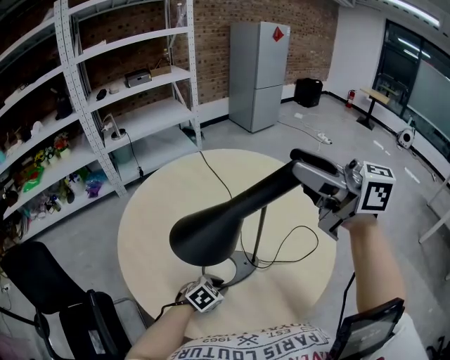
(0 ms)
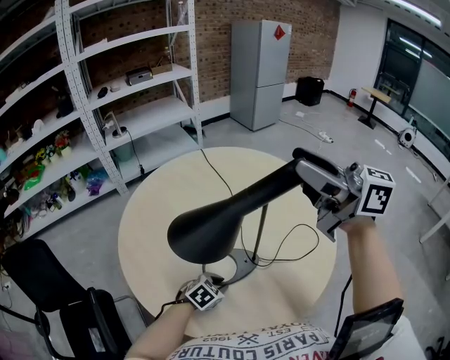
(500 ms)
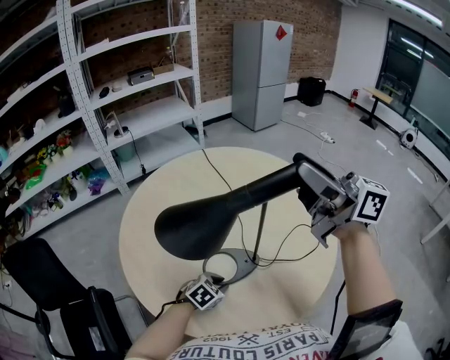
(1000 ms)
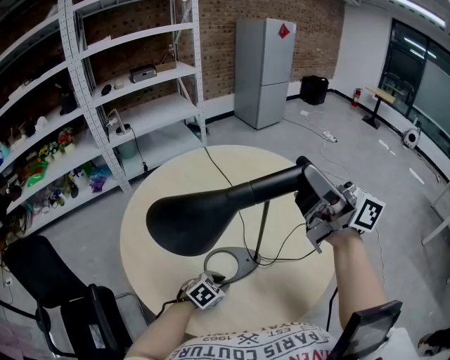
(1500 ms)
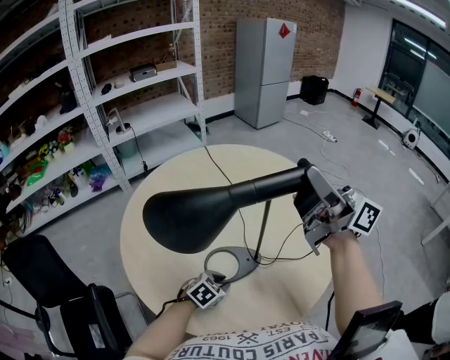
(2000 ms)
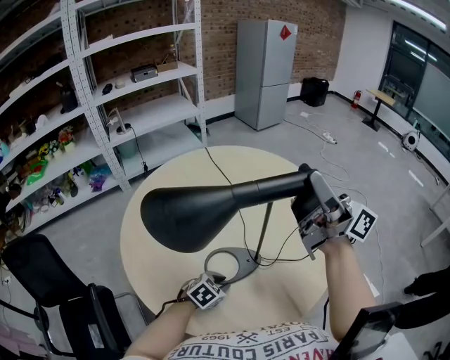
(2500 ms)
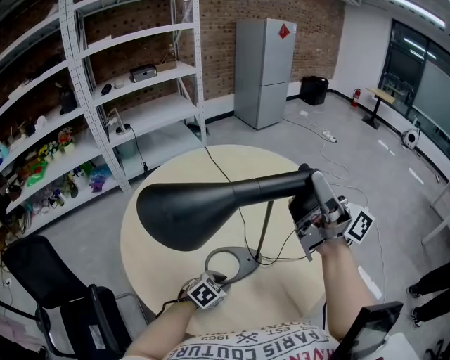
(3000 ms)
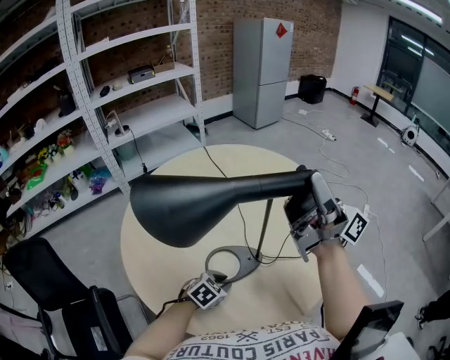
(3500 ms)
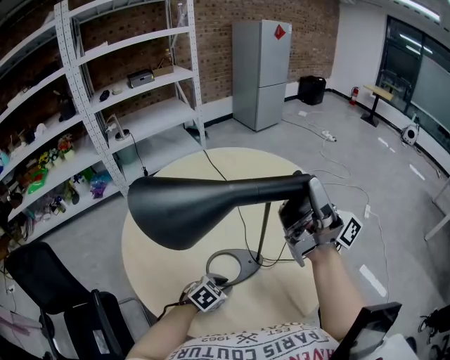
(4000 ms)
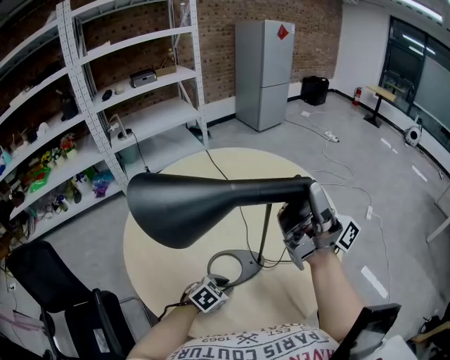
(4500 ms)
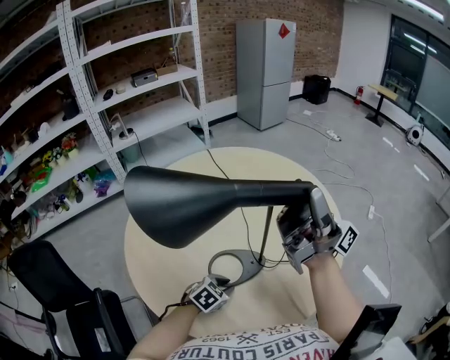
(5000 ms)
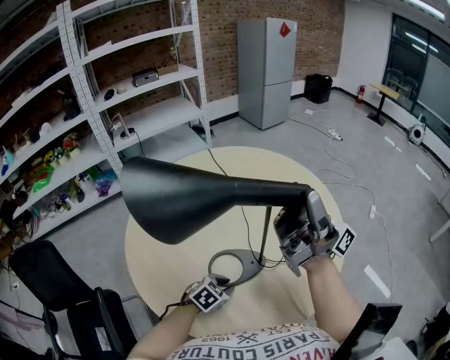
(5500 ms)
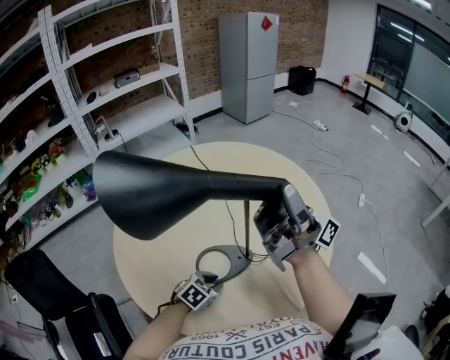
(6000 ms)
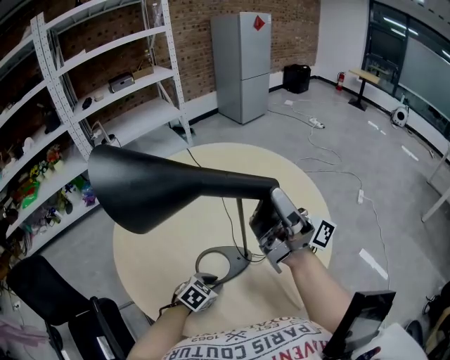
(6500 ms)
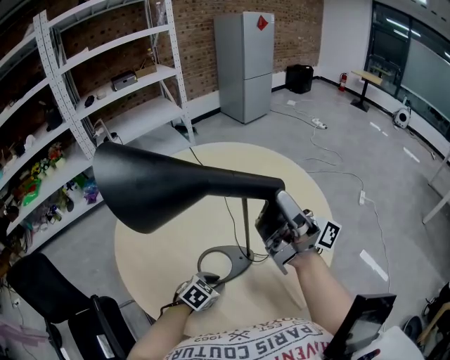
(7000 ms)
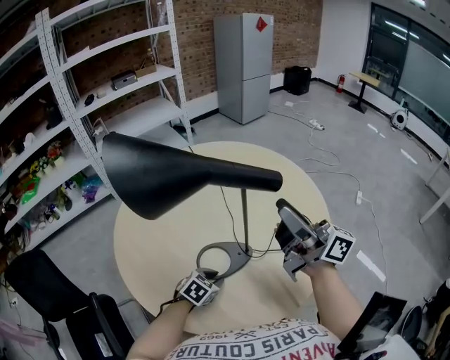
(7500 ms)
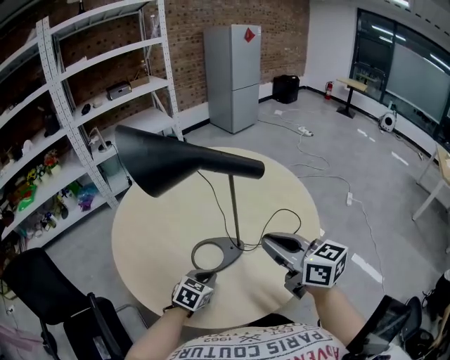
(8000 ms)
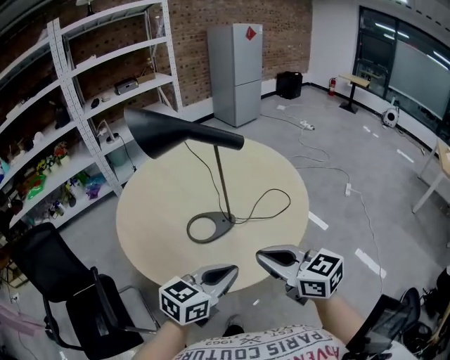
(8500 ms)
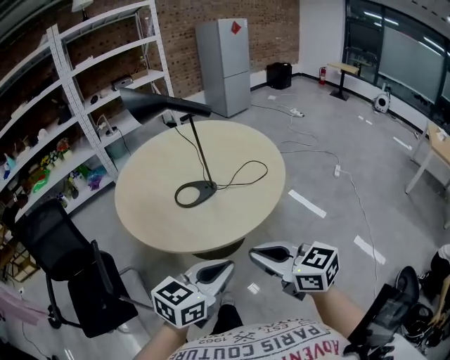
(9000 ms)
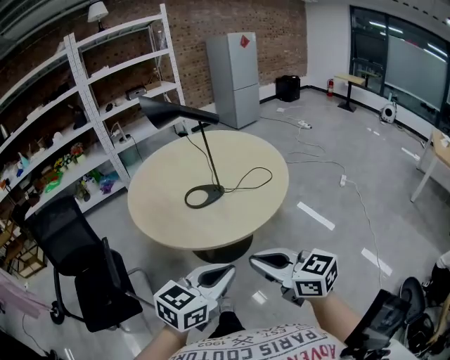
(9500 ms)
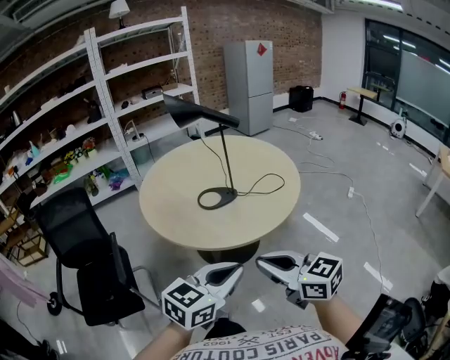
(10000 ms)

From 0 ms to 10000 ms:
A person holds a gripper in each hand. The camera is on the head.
From 0 ms to 2000 ms: The right gripper swivels about 30 degrees.
From 2000 ms to 4000 ms: The right gripper swivels about 20 degrees.
From 4000 ms to 6000 ms: The grippers stay close to where they were, moving slightly.
From 6000 ms to 8000 ms: The right gripper shifts some 15 cm downward and backward, angles its fingers downward, by some 60 degrees, and closes up, while the left gripper shifts by roughly 5 cm, and closes its fingers.
From 8000 ms to 10000 ms: The right gripper travels backward by approximately 35 cm; the left gripper is displaced backward and upward by approximately 50 cm, and swivels approximately 30 degrees.

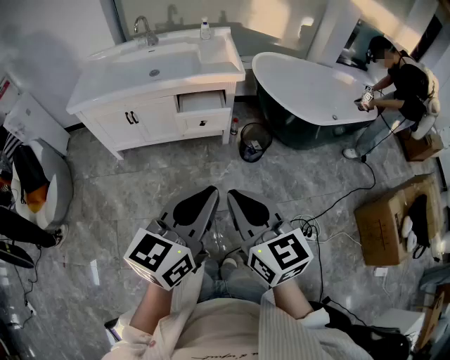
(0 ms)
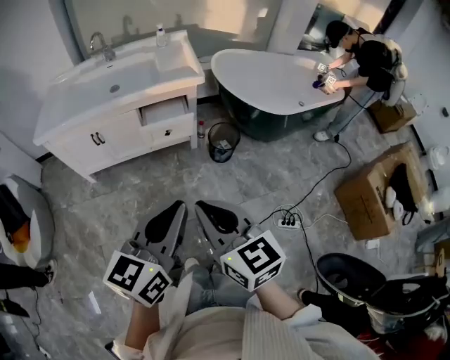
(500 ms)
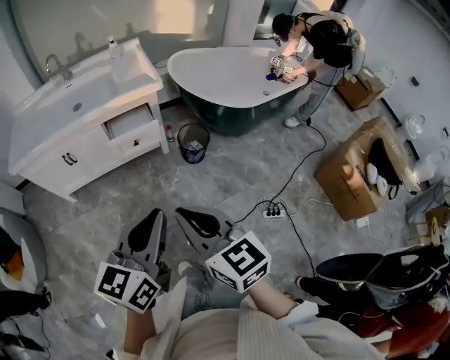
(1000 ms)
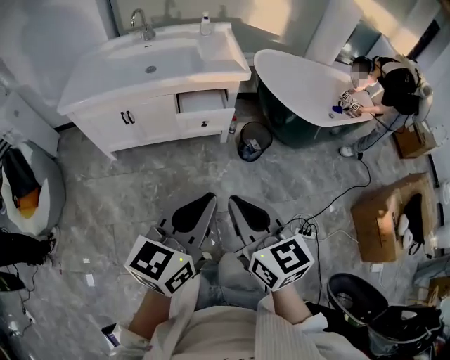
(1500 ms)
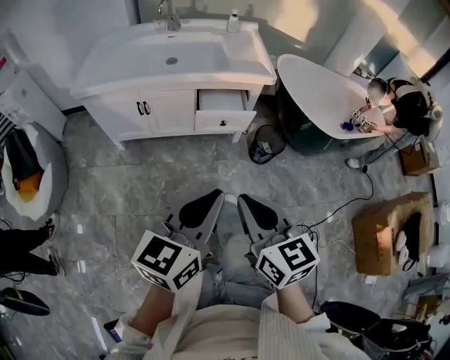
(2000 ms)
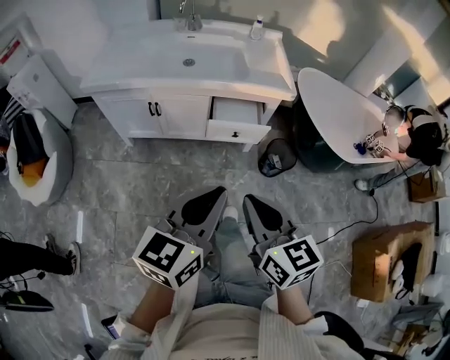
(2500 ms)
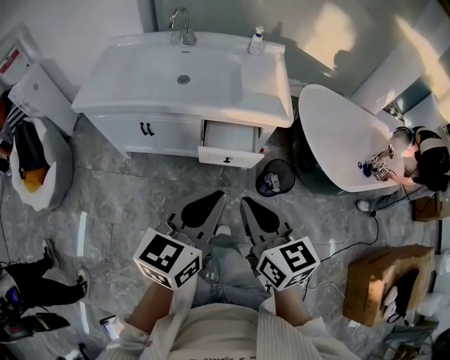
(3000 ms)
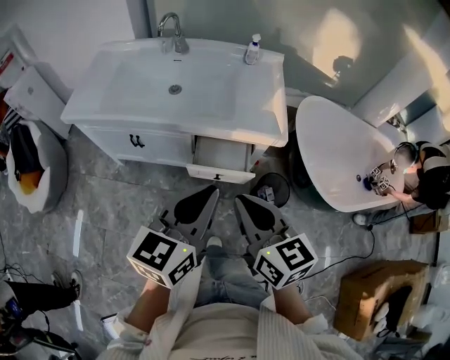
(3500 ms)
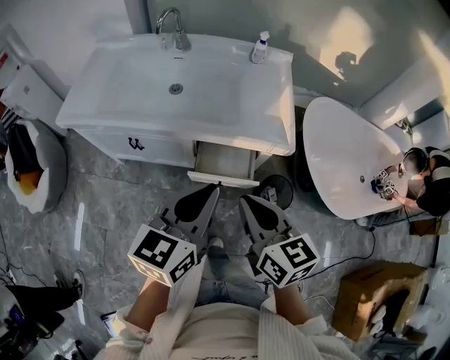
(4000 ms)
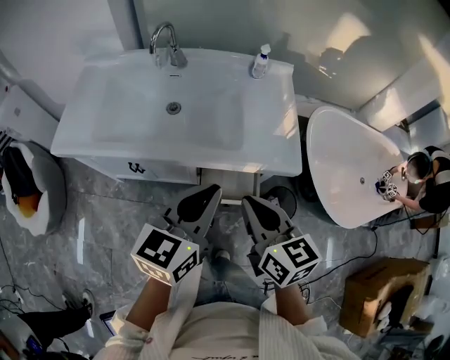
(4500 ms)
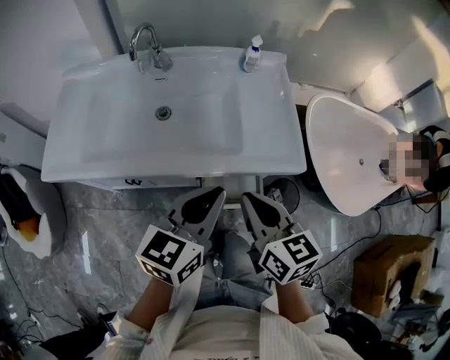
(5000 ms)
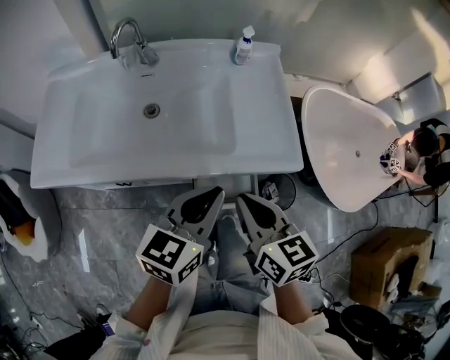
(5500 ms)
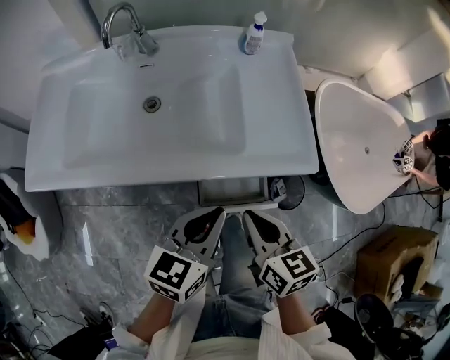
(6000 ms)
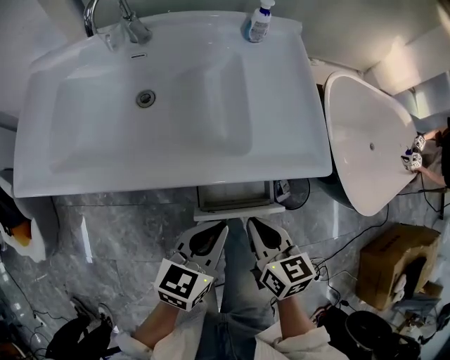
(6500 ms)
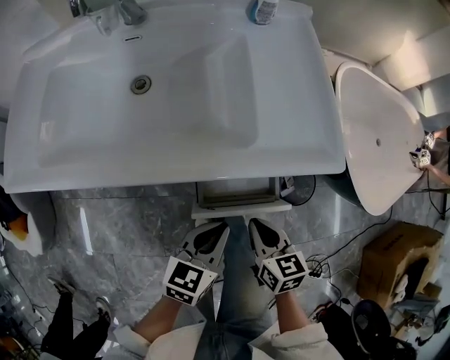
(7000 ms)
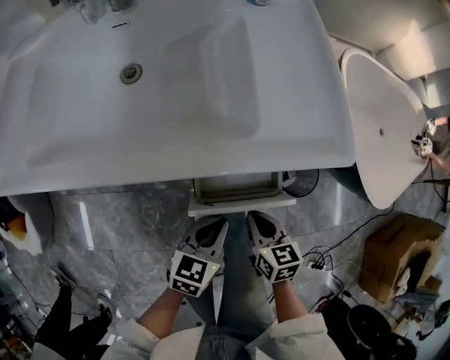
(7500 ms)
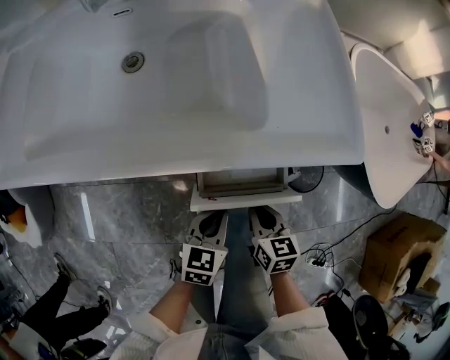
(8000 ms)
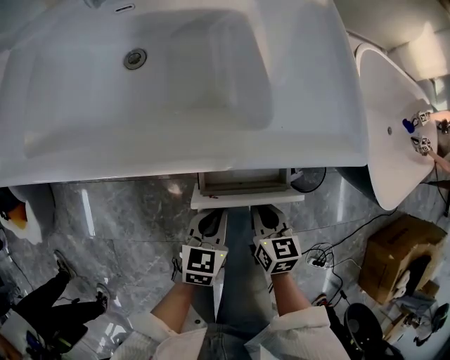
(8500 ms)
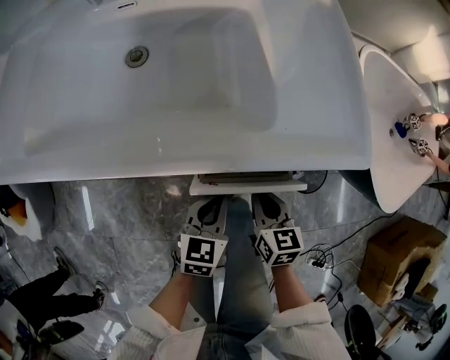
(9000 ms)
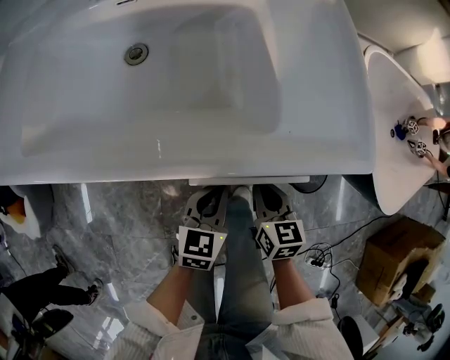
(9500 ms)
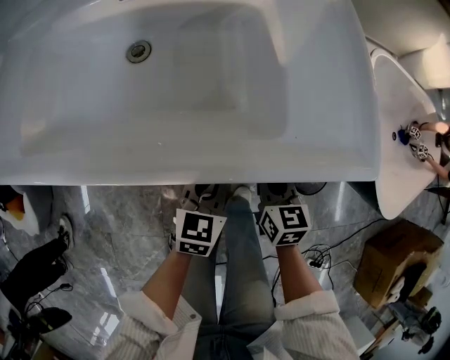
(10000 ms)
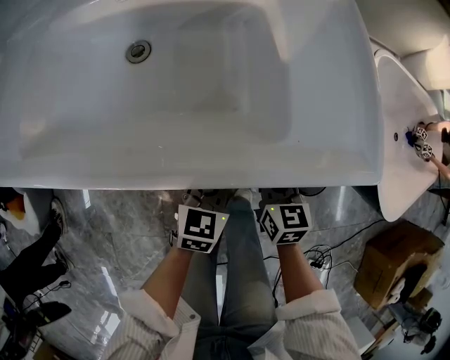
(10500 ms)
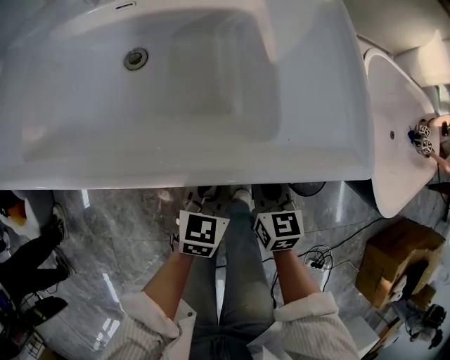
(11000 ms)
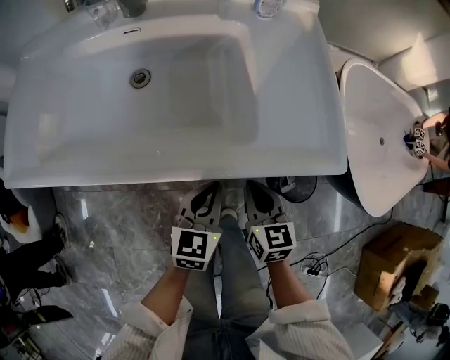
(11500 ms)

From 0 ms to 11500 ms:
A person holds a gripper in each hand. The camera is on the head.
From 0 ms to 2000 ms: The grippers both shift to the left and forward by some 10 cm.
From 2000 ms to 4000 ms: The grippers both shift forward by roughly 35 cm.
From 4000 ms to 6000 ms: Both grippers travel together downward and forward, about 15 cm.
From 6000 ms to 7500 ms: Both grippers travel together downward, roughly 20 cm.
From 7500 ms to 9500 ms: The two grippers go some 5 cm forward.
From 9500 ms to 11500 ms: Both grippers move upward, roughly 5 cm.

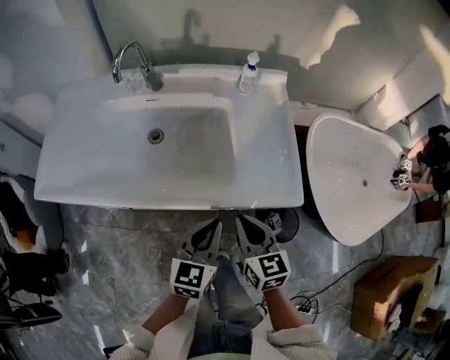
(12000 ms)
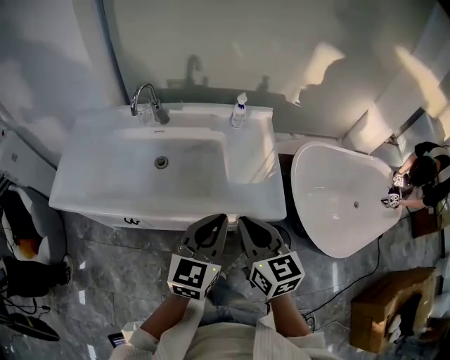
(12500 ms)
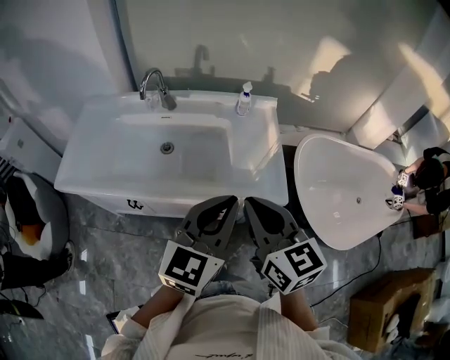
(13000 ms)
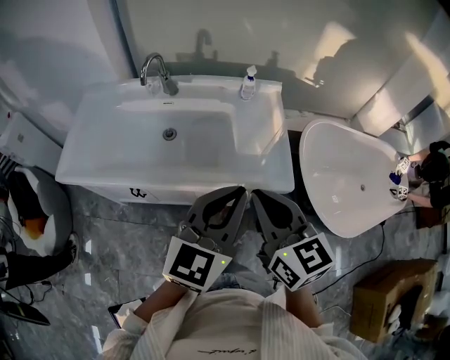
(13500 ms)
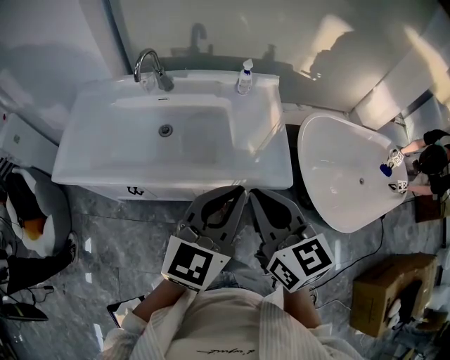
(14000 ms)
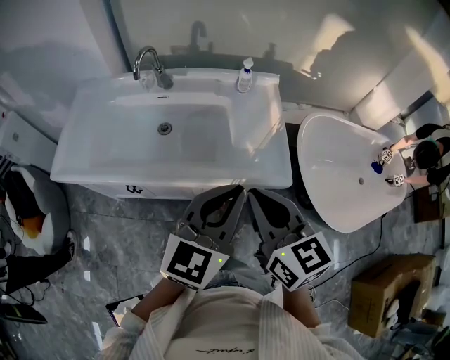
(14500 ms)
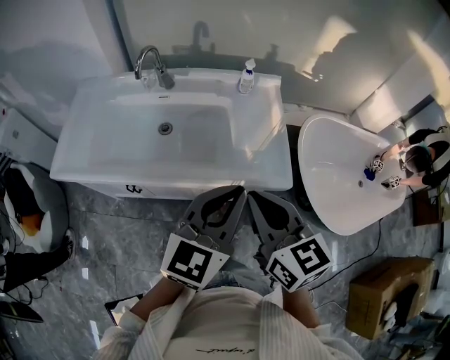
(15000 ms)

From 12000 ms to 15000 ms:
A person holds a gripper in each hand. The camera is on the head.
From 12000 ms to 13500 ms: Both grippers move upward, some 25 cm.
From 13500 ms to 15000 ms: The grippers move only a little.

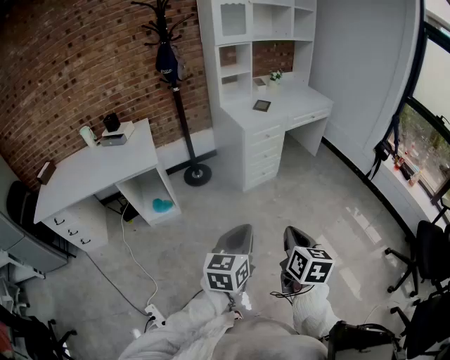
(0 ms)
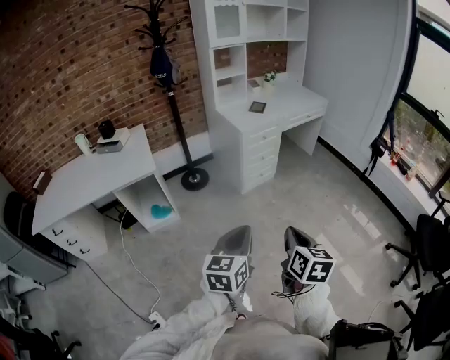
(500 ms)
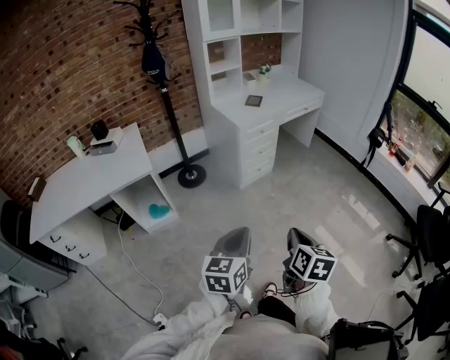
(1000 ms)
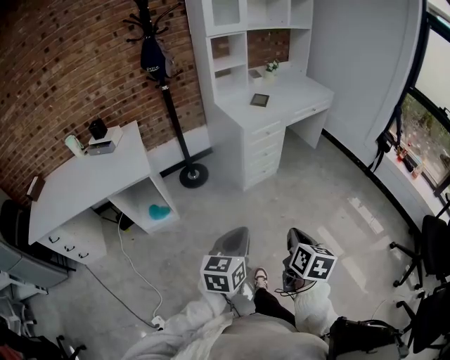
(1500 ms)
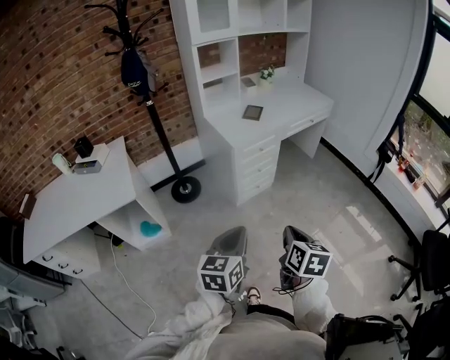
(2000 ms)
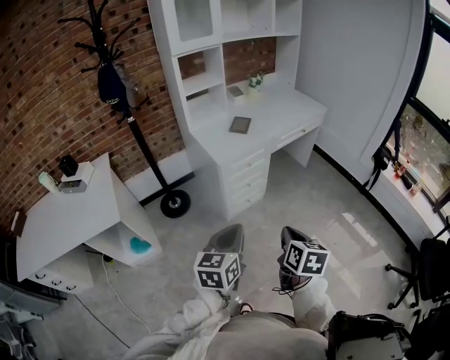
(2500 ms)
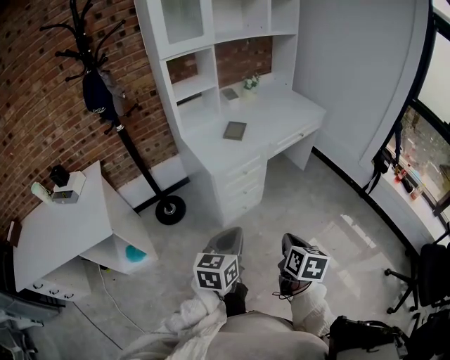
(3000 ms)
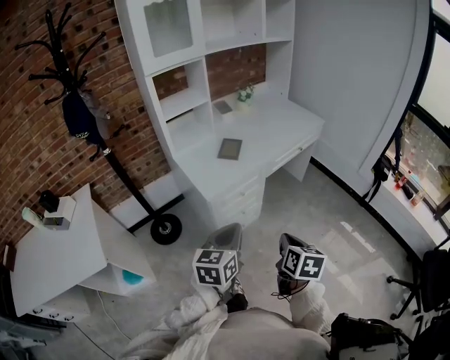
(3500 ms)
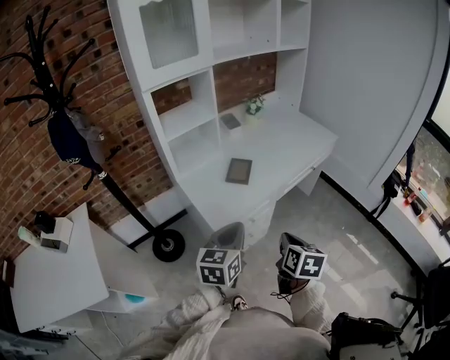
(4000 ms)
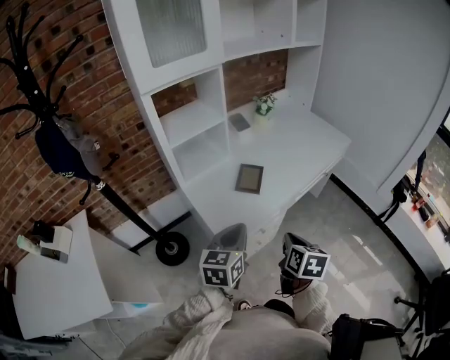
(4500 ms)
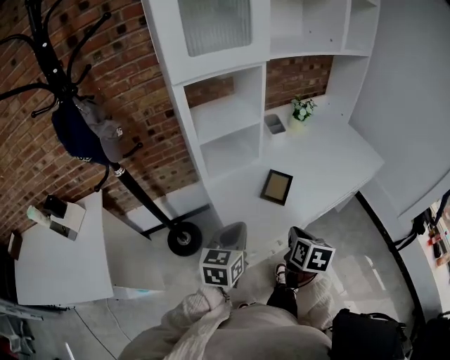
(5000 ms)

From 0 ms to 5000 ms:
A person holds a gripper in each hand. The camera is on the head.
From 0 ms to 2500 ms: Both grippers travel together forward, roughly 35 cm.
From 2500 ms to 5000 ms: The pair of grippers is taken forward, approximately 50 cm.
